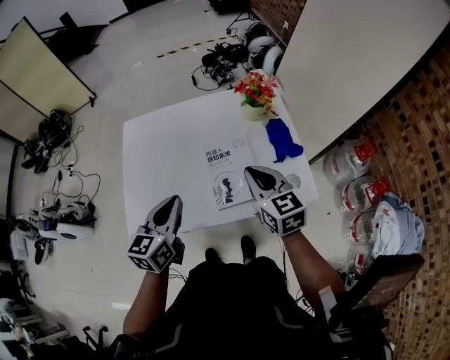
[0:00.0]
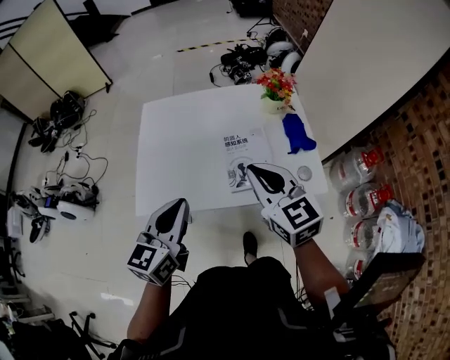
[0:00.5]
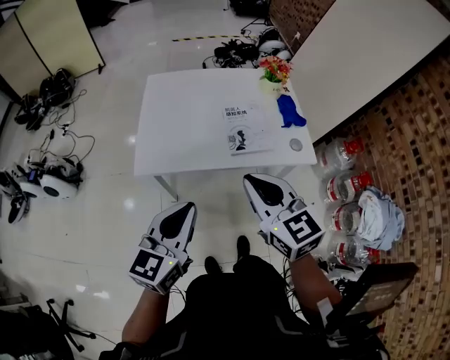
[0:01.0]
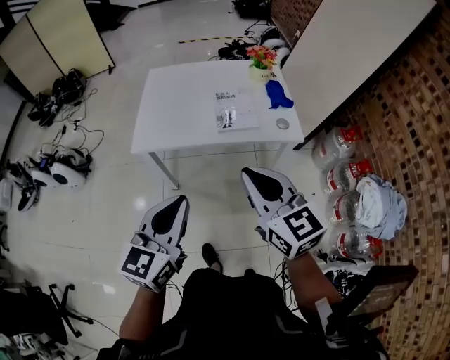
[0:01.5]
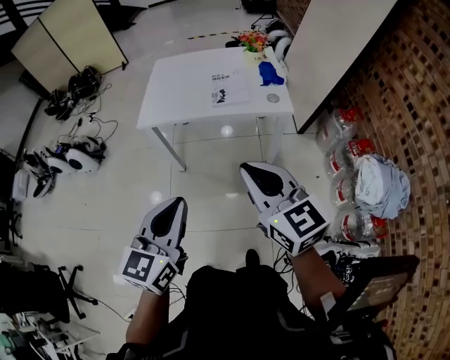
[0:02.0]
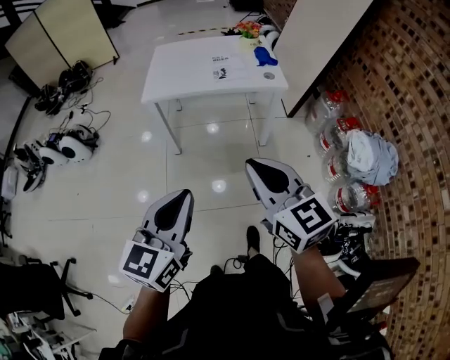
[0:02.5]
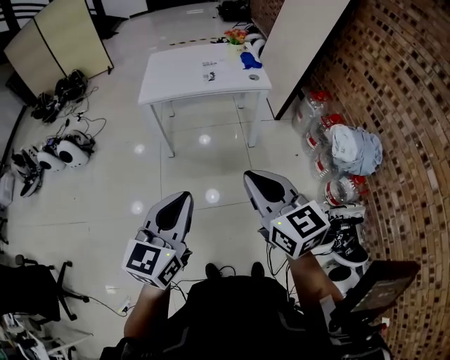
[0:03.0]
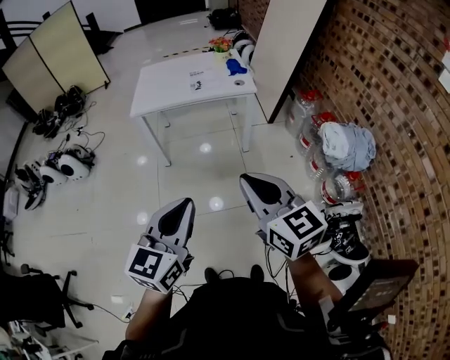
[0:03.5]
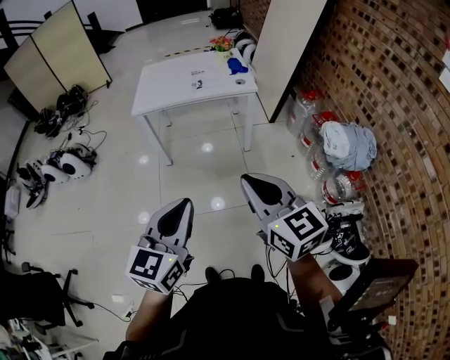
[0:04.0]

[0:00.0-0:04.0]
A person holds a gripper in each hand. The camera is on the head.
0:00.0 to 0:02.0: The pair of grippers is taken backward, some 50 cm.
0:02.0 to 0:04.0: The grippers both shift backward by about 30 cm.

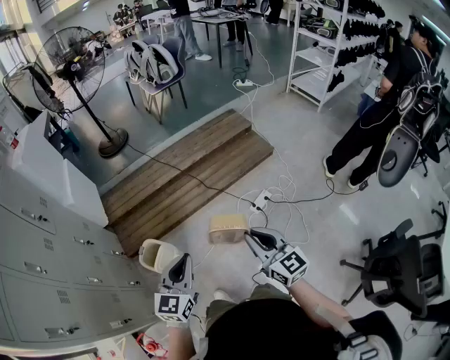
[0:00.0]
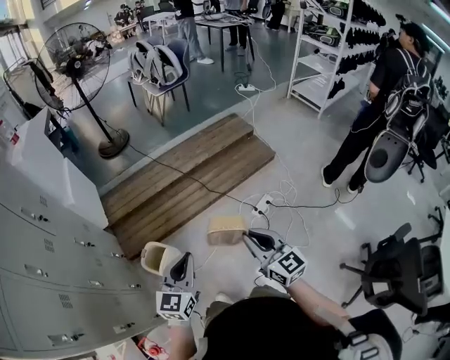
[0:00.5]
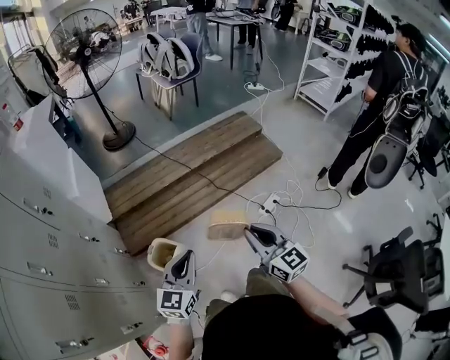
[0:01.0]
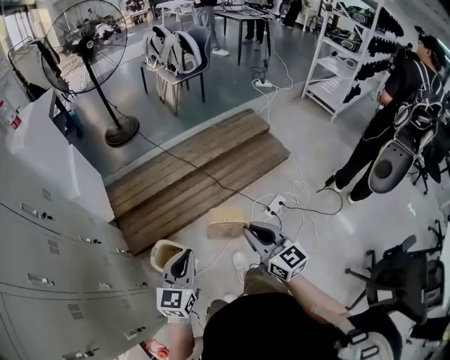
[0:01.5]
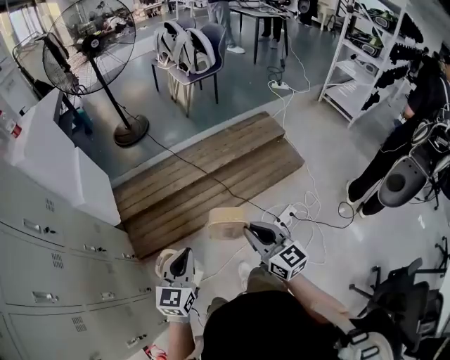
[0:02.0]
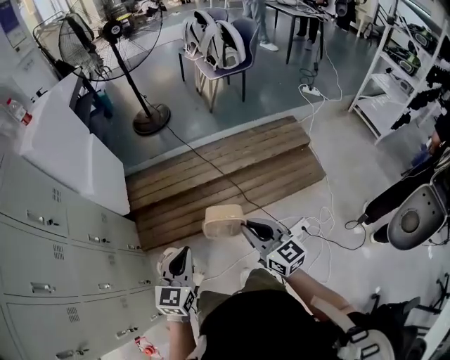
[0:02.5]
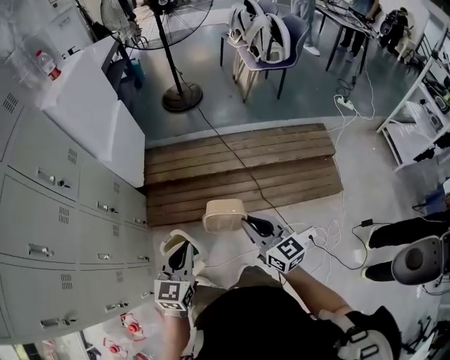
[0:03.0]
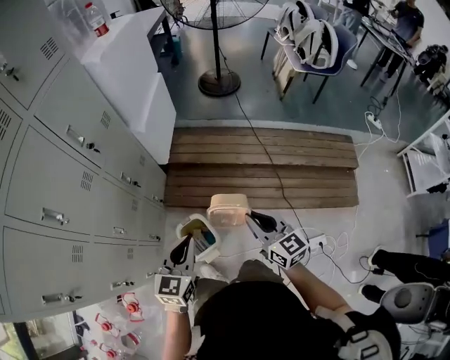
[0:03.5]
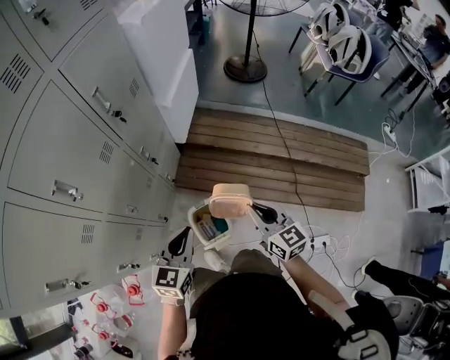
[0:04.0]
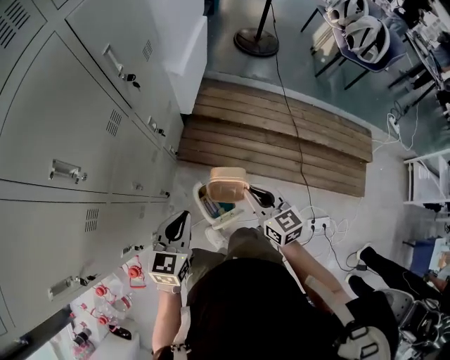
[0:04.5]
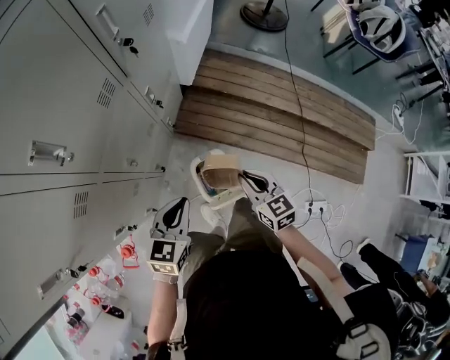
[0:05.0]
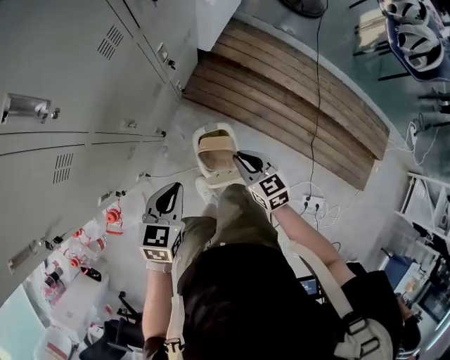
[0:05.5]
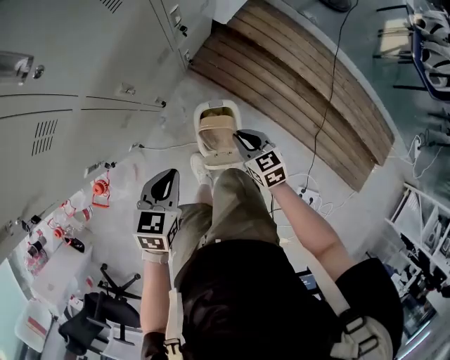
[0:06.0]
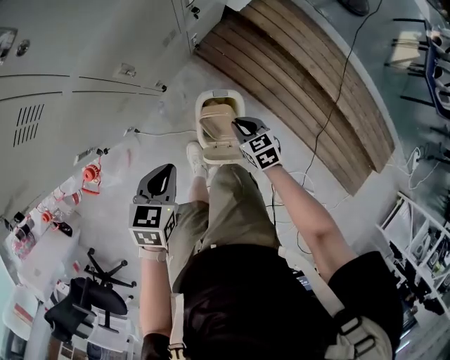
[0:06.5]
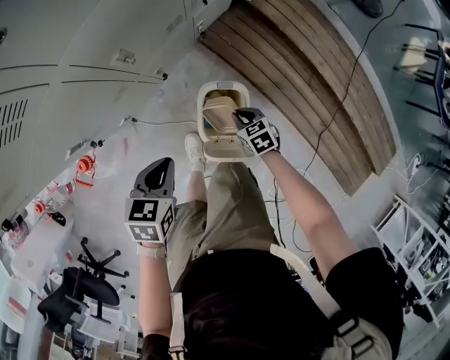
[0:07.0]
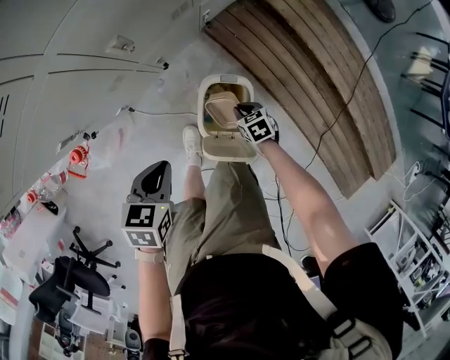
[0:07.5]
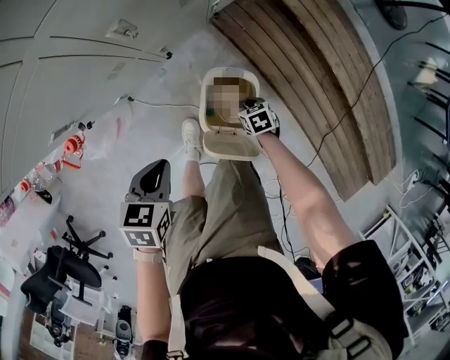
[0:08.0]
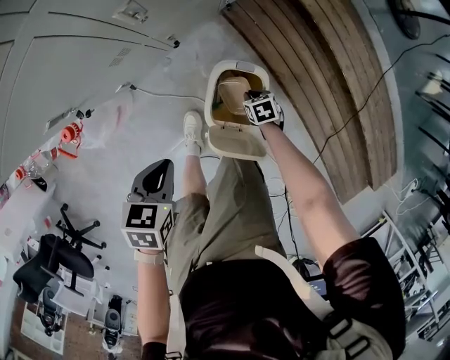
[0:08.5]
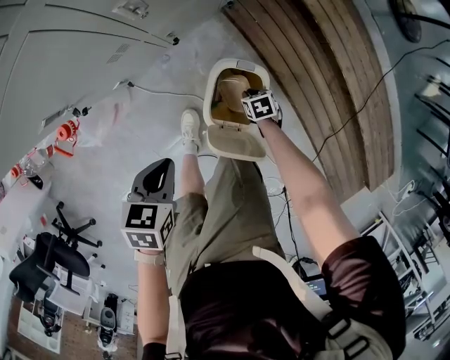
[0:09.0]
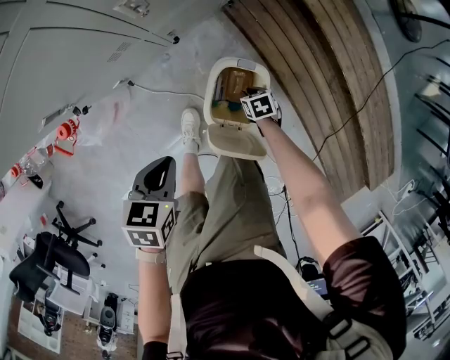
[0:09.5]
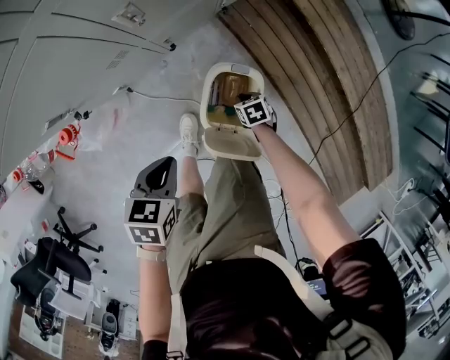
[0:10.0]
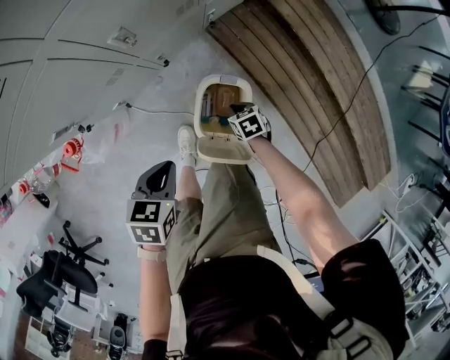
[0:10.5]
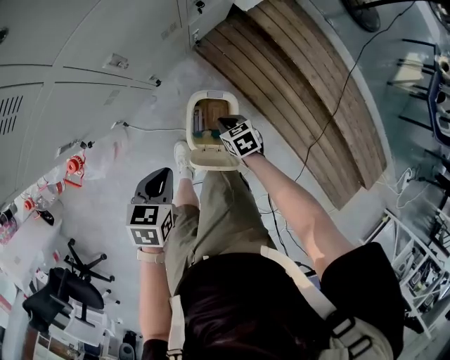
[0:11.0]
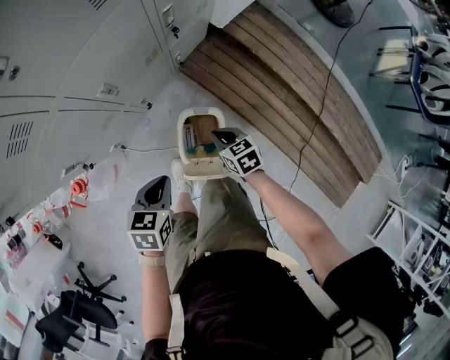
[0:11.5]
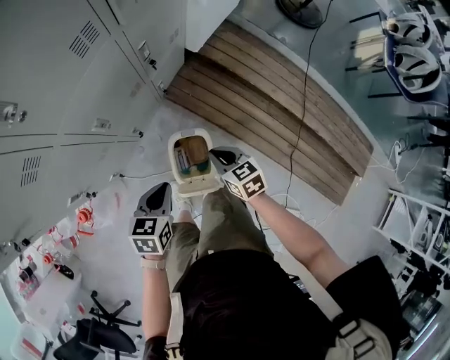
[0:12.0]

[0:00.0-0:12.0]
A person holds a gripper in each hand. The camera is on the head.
0:00.0 to 0:02.0: Both grippers move forward and to the left, about 25 cm.
0:02.0 to 0:04.0: The left gripper moves about 25 cm, and swivels approximately 40 degrees; the right gripper ends up about 35 cm from where it was, and rotates roughly 40 degrees.
0:04.0 to 0:06.0: Both grippers move downward and to the left, roughly 30 cm. The right gripper swivels roughly 40 degrees. The left gripper changes its angle by roughly 30 degrees.
0:06.0 to 0:08.0: The left gripper is displaced downward by some 10 cm, and rotates some 20 degrees. The right gripper moves downward, about 30 cm, and rotates about 30 degrees.
0:08.0 to 0:10.0: The grippers make only small movements.
0:10.0 to 0:12.0: The left gripper travels upward, to the right and forward by some 15 cm, and rotates roughly 20 degrees. Meanwhile the right gripper travels upward by some 35 cm, and swivels some 30 degrees.

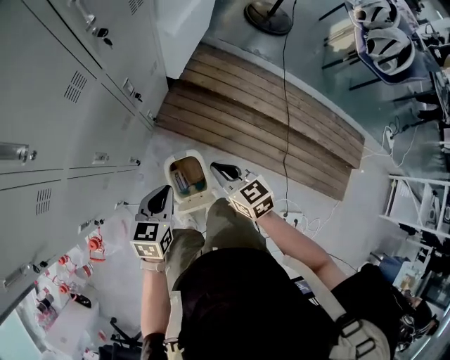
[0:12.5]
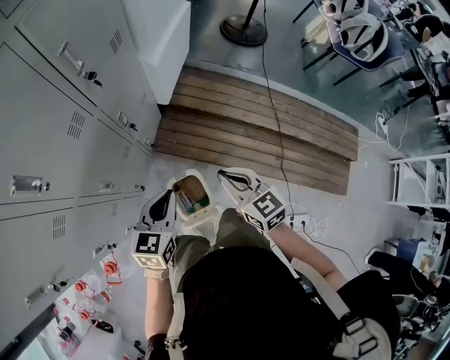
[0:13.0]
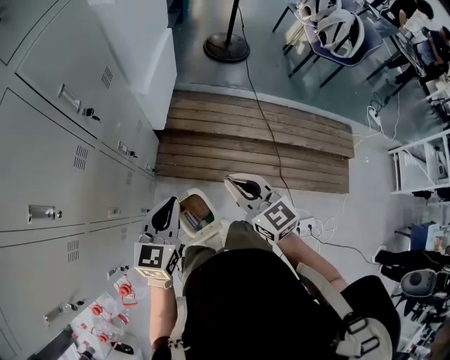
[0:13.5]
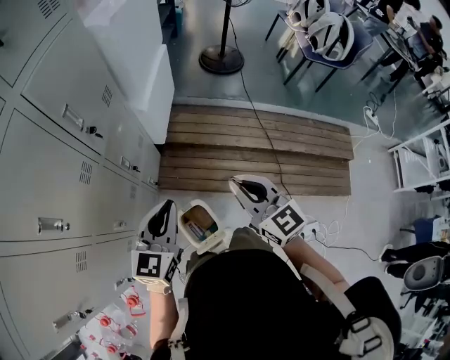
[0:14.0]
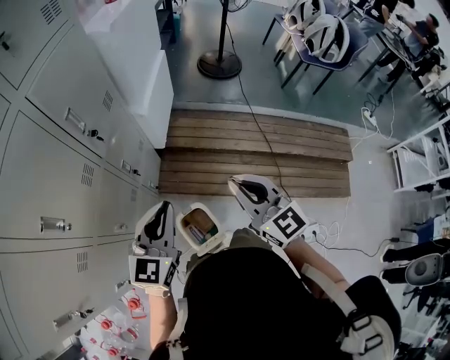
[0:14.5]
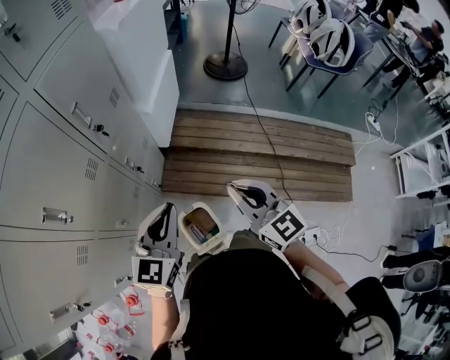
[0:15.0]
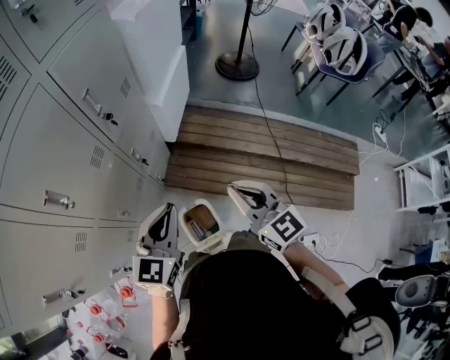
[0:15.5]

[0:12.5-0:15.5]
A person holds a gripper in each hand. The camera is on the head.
0:12.5 to 0:14.0: Both grippers travel together upward, approximately 25 cm. The right gripper rotates some 30 degrees; the left gripper rotates approximately 30 degrees.
0:14.0 to 0:15.5: The left gripper shifts by about 5 cm.

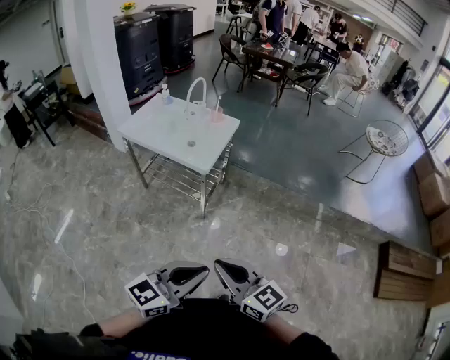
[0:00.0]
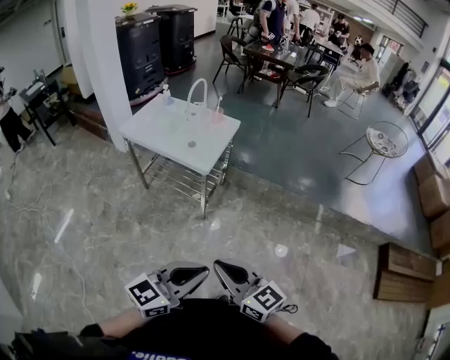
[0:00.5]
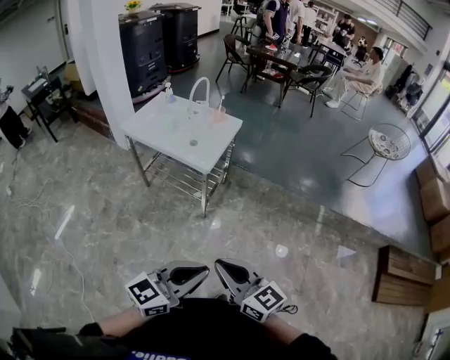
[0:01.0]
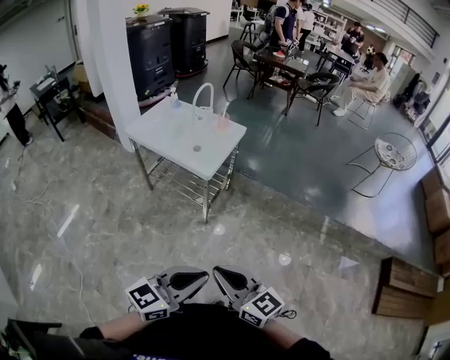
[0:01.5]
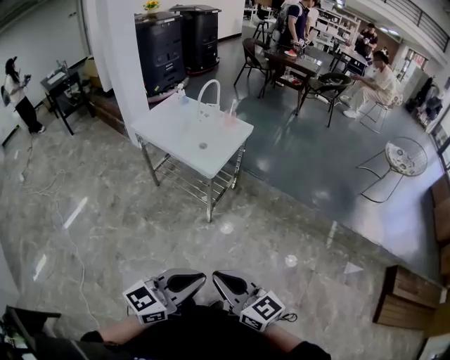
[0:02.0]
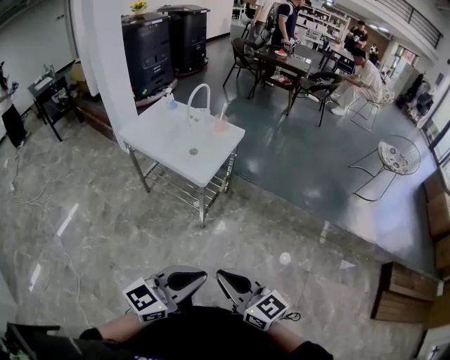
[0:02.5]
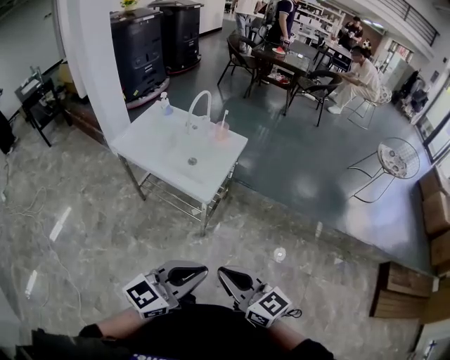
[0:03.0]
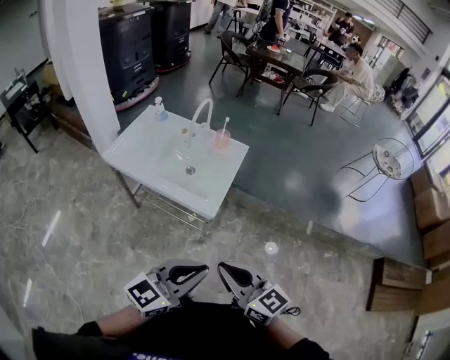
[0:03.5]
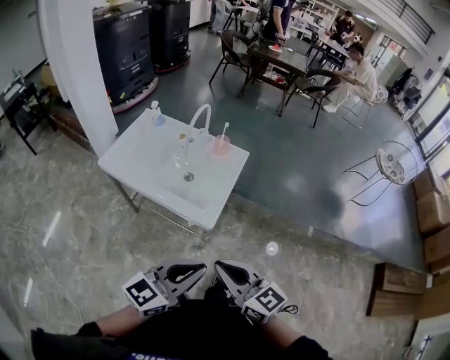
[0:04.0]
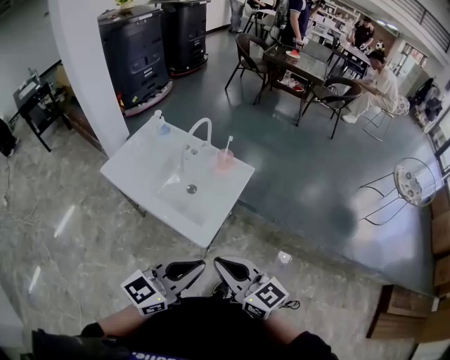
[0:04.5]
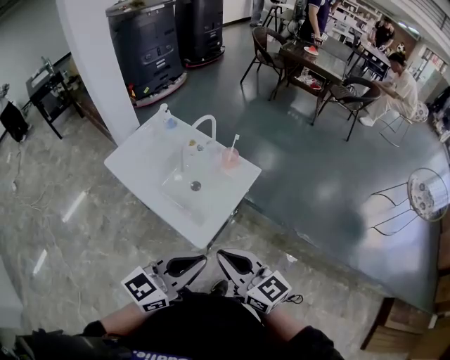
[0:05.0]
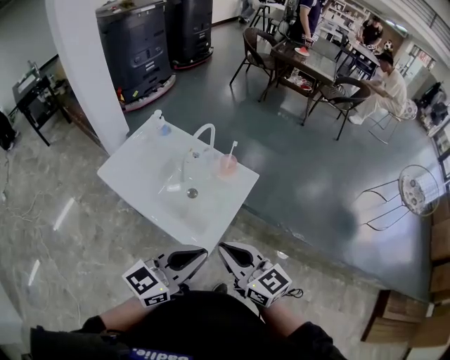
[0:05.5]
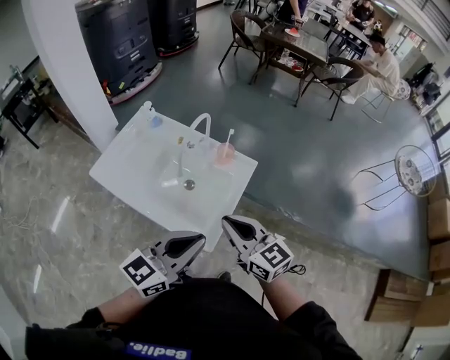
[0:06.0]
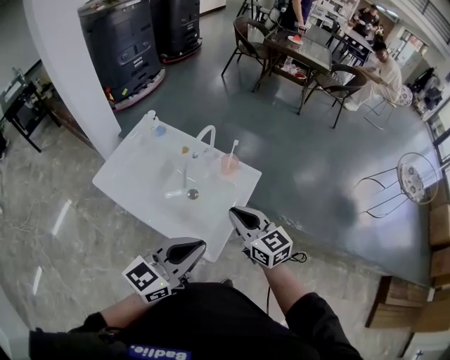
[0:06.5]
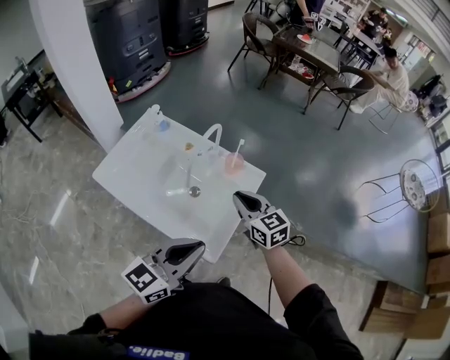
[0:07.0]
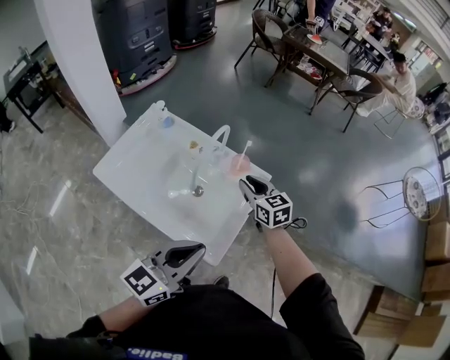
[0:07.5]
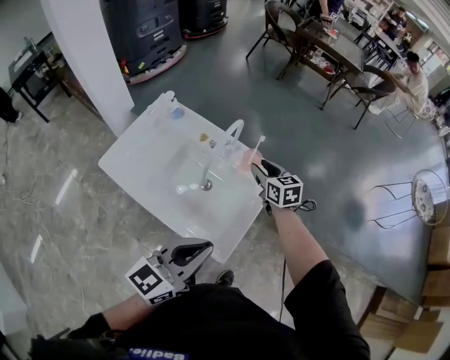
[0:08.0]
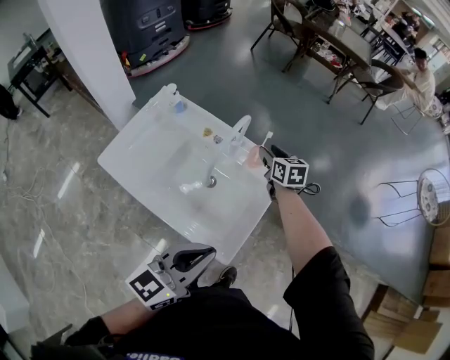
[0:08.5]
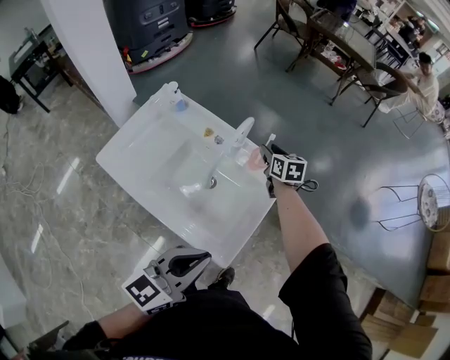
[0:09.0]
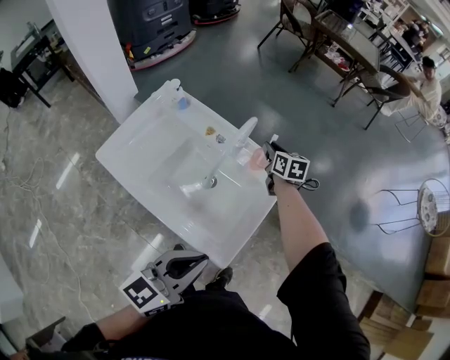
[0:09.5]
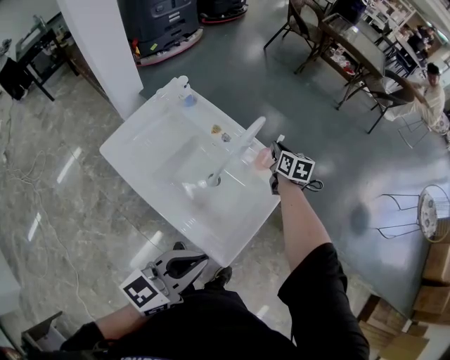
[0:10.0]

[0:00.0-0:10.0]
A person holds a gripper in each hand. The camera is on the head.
0:00.0 to 0:02.0: The left gripper shifts by about 5 cm. Meanwhile the right gripper travels to the right by about 5 cm.
0:02.0 to 0:04.0: The grippers both shift forward and to the left by about 35 cm.
0:04.0 to 0:06.0: The two grippers go approximately 25 cm forward.
0:06.0 to 0:08.0: The left gripper changes place by roughly 5 cm. The right gripper shifts some 30 cm forward and downward, turns by about 20 degrees, and opens its fingers.
0:08.0 to 0:10.0: The left gripper changes place by about 5 cm. The right gripper is displaced forward by roughly 10 cm, and closes its fingers.
